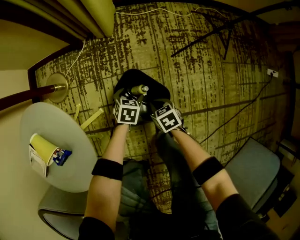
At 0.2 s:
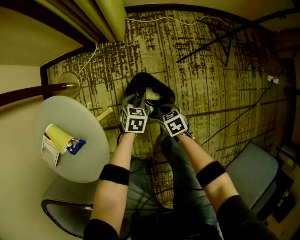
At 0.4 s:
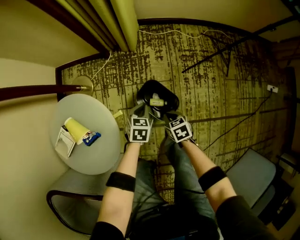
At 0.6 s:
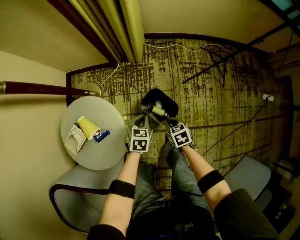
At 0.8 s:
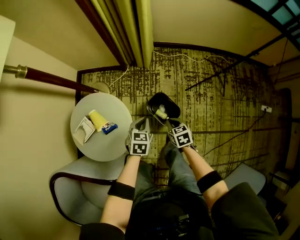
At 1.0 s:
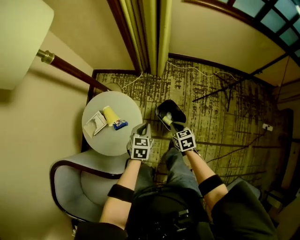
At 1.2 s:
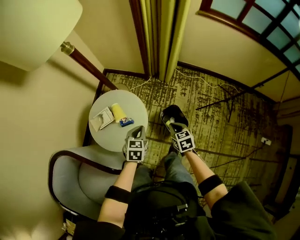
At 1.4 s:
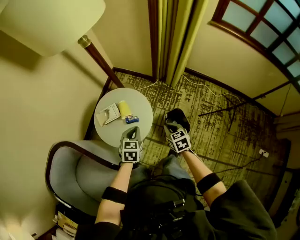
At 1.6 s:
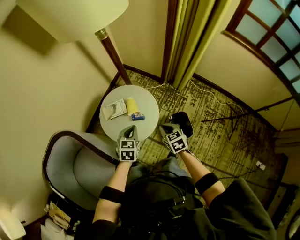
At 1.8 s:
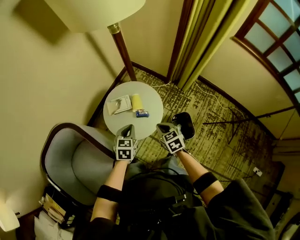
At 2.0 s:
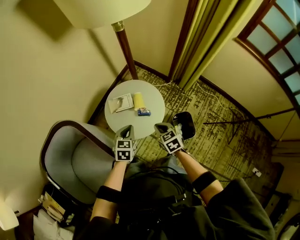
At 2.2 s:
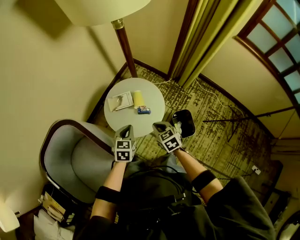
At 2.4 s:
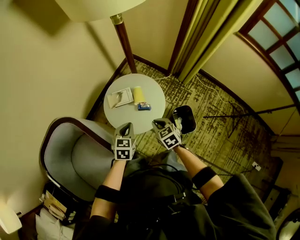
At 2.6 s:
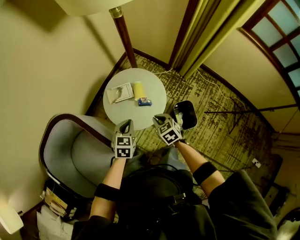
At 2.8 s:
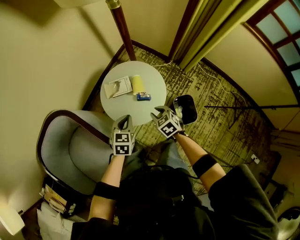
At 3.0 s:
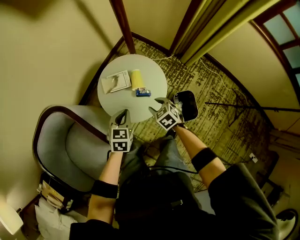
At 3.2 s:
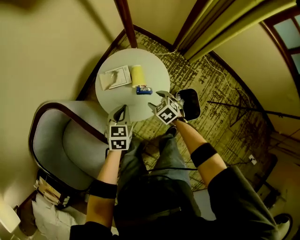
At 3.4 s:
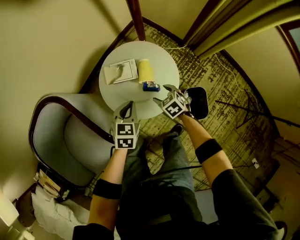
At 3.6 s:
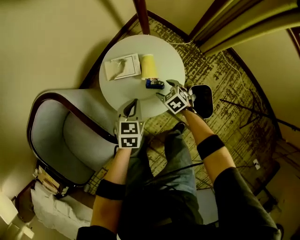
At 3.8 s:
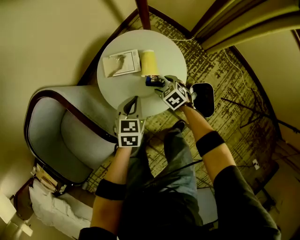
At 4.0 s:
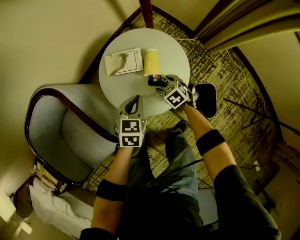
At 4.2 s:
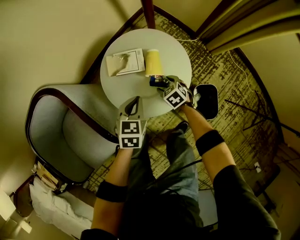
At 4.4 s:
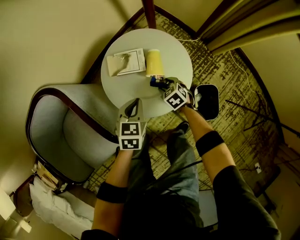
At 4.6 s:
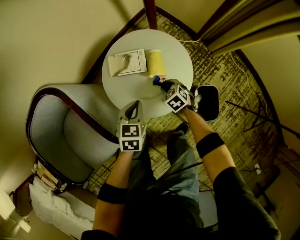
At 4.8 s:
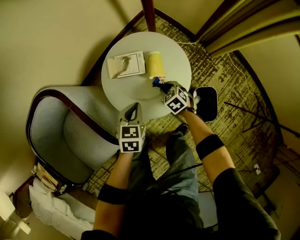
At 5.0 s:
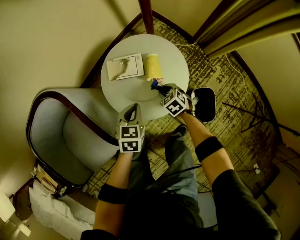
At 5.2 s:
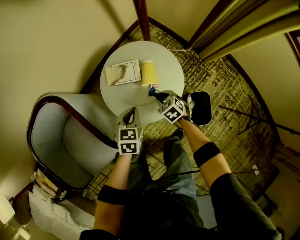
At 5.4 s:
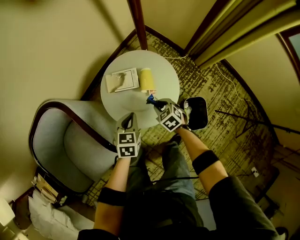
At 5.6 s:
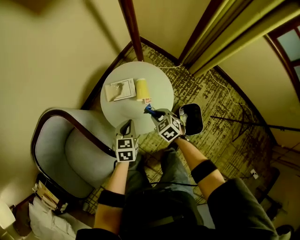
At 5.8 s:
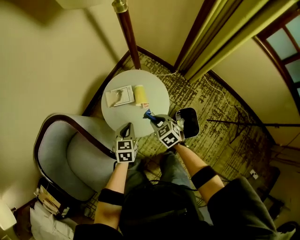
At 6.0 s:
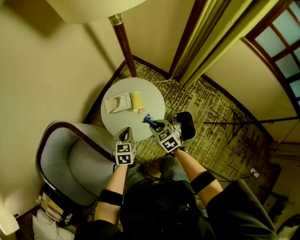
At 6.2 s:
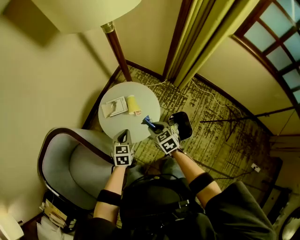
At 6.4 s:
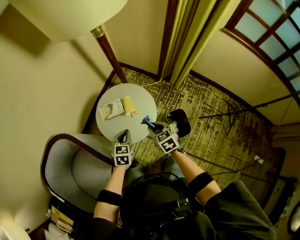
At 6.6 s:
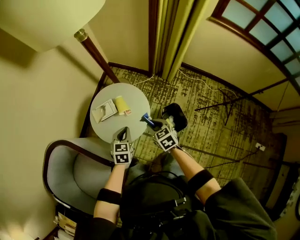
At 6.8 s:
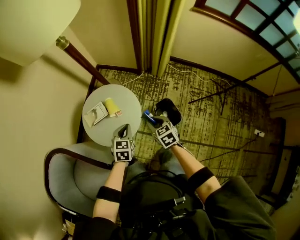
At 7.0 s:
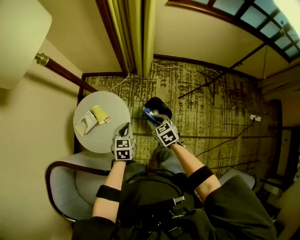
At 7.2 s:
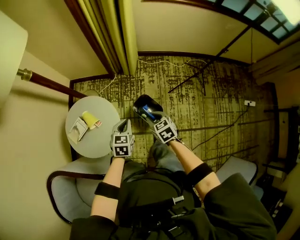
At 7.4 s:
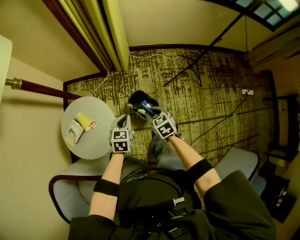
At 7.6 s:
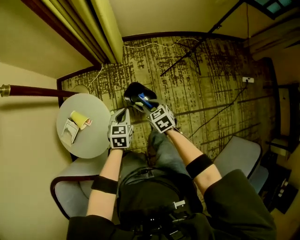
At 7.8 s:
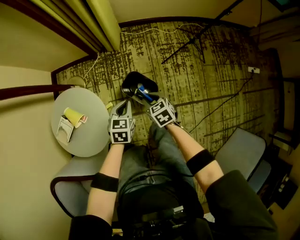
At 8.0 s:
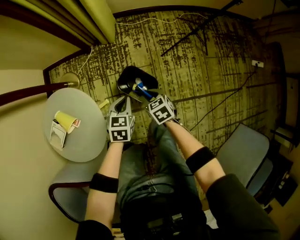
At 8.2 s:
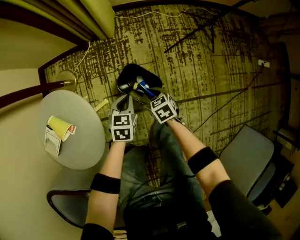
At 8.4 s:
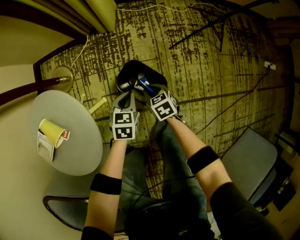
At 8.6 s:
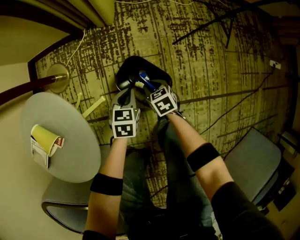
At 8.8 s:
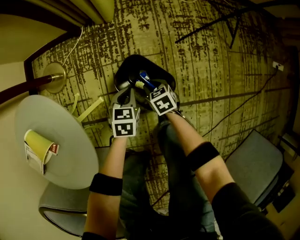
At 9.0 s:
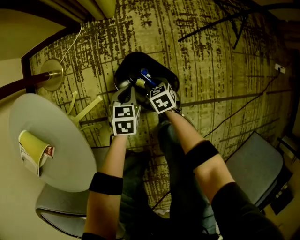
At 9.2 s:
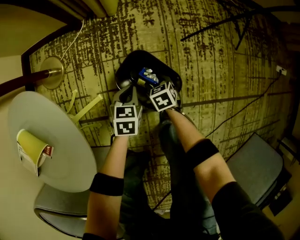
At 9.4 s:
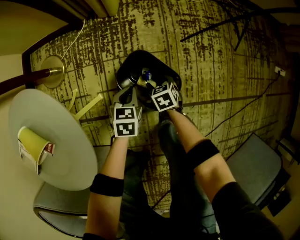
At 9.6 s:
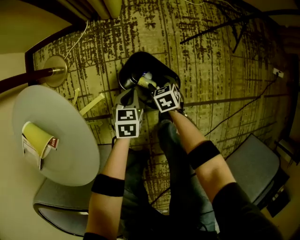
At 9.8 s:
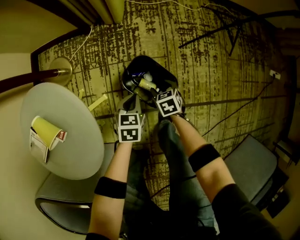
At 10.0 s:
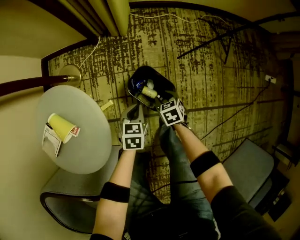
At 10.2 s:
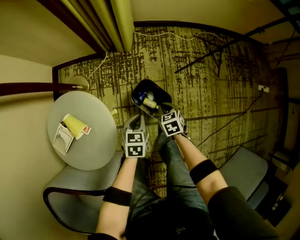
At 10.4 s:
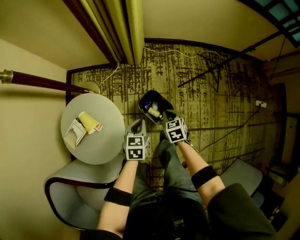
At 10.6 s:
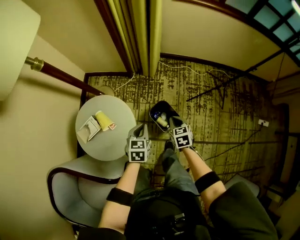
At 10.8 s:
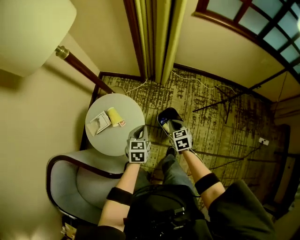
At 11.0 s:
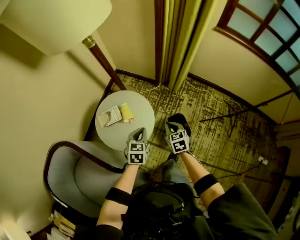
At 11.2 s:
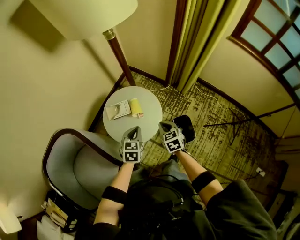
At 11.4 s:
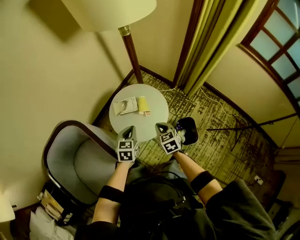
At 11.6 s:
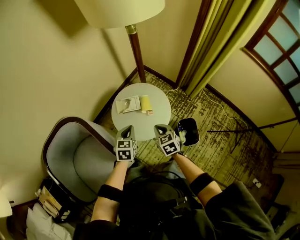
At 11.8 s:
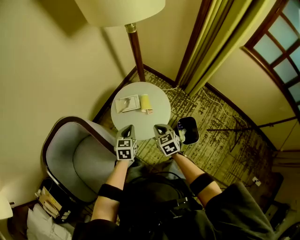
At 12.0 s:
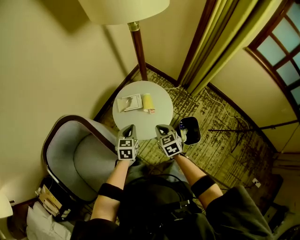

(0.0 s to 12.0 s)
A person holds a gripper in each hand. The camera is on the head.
0.0 s - 1.6 s: Both grippers move upward, approximately 50 cm. The right gripper changes its angle by some 40 degrees. The left gripper turns by about 50 degrees, and closes up.
1.6 s - 3.0 s: The right gripper travels to the left, downward and forward by roughly 15 cm, rotates approximately 20 degrees, and opens. The left gripper is displaced to the left and downward by roughly 10 cm.
3.0 s - 4.4 s: The right gripper heads downward, covering about 20 cm. Meanwhile the left gripper heads downward, covering about 10 cm.
4.4 s - 6.0 s: The left gripper heads upward, covering approximately 10 cm. The right gripper goes some 25 cm upward.
6.0 s - 7.6 s: The left gripper shifts by some 35 cm, and swivels approximately 40 degrees. The right gripper ends up approximately 35 cm from where it was, and turns by some 50 degrees.
7.6 s - 9.0 s: Both grippers move downward, approximately 50 cm.
9.0 s - 10.4 s: Both grippers travel together upward, about 40 cm.
10.4 s - 12.0 s: The left gripper ends up approximately 40 cm from where it was, and turns by some 40 degrees. Meanwhile the right gripper ends up approximately 40 cm from where it was, and swivels approximately 50 degrees.

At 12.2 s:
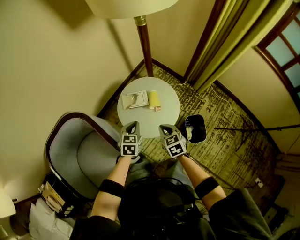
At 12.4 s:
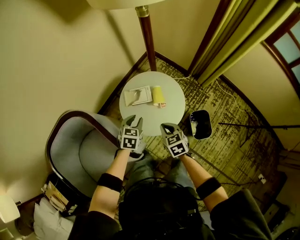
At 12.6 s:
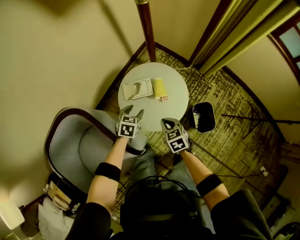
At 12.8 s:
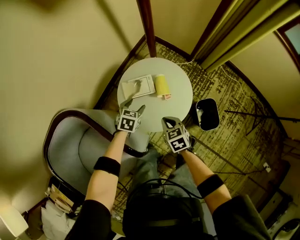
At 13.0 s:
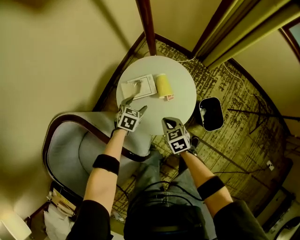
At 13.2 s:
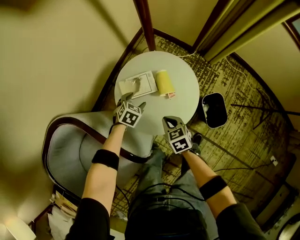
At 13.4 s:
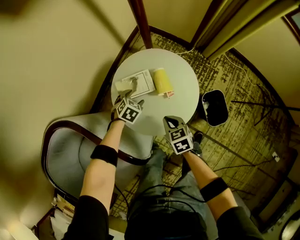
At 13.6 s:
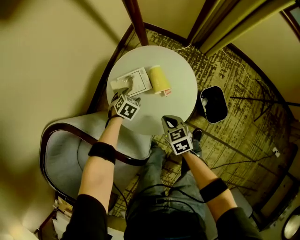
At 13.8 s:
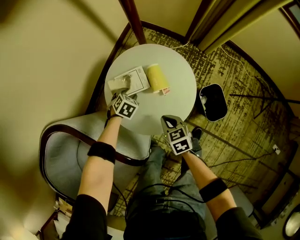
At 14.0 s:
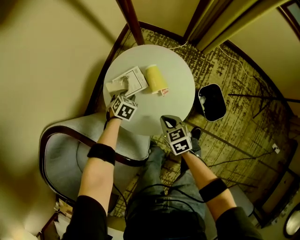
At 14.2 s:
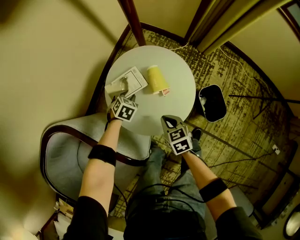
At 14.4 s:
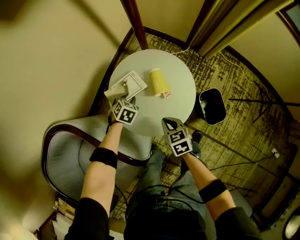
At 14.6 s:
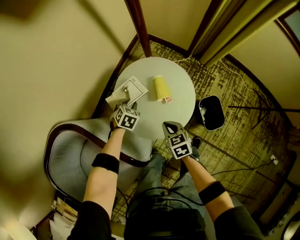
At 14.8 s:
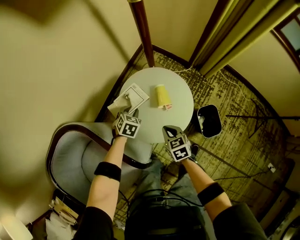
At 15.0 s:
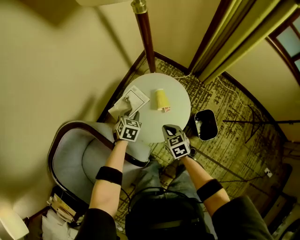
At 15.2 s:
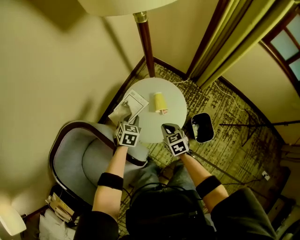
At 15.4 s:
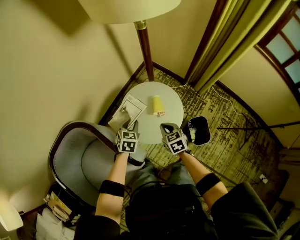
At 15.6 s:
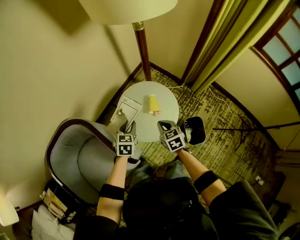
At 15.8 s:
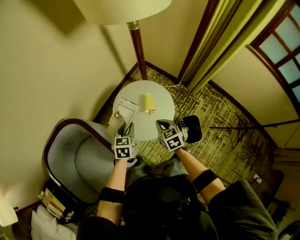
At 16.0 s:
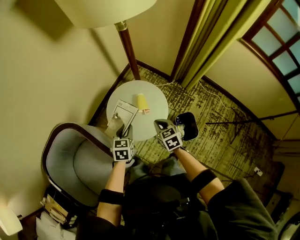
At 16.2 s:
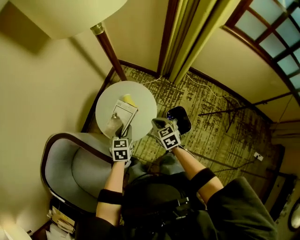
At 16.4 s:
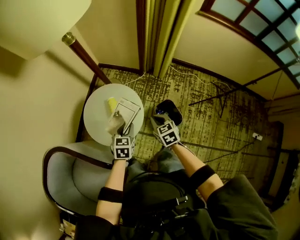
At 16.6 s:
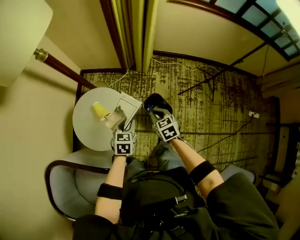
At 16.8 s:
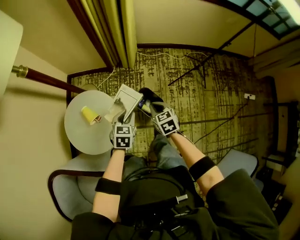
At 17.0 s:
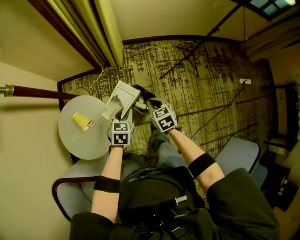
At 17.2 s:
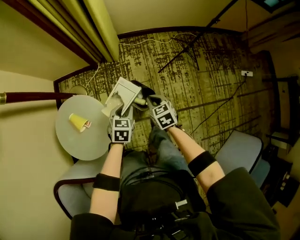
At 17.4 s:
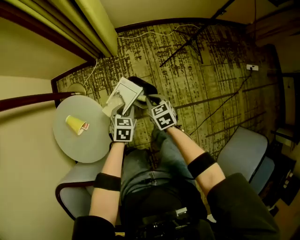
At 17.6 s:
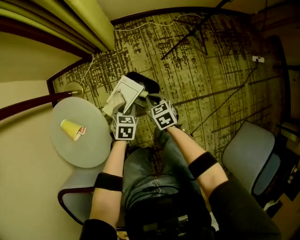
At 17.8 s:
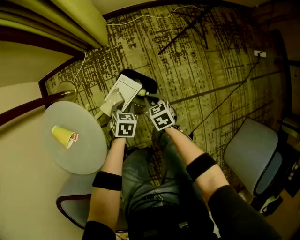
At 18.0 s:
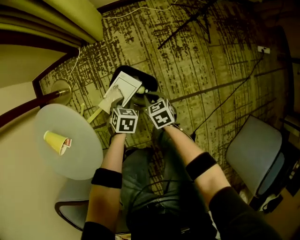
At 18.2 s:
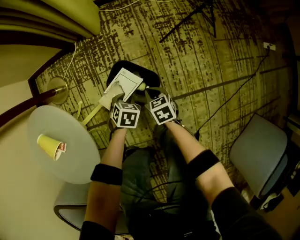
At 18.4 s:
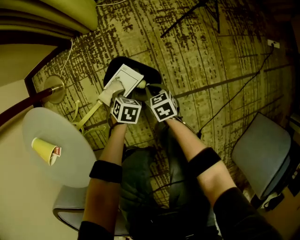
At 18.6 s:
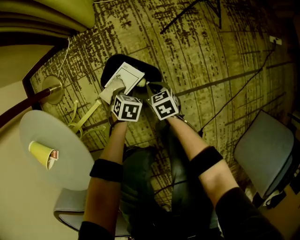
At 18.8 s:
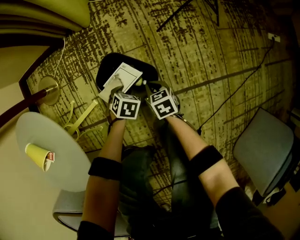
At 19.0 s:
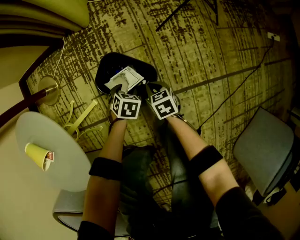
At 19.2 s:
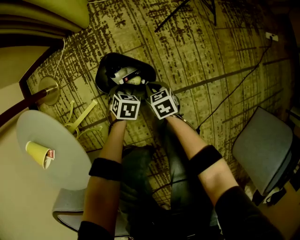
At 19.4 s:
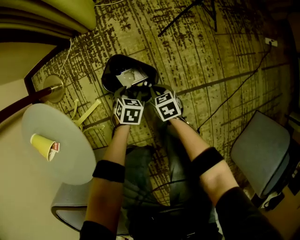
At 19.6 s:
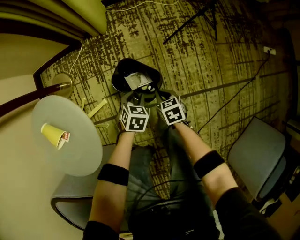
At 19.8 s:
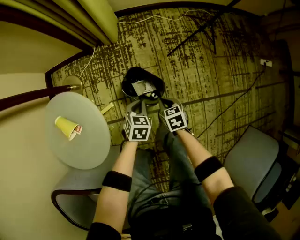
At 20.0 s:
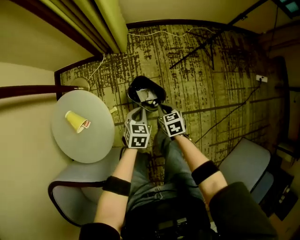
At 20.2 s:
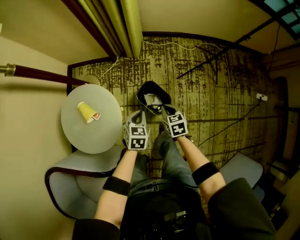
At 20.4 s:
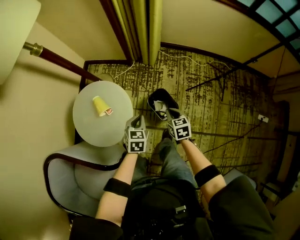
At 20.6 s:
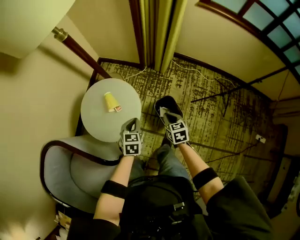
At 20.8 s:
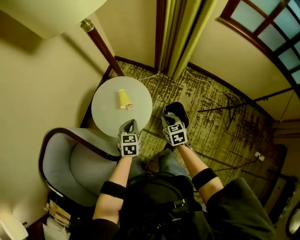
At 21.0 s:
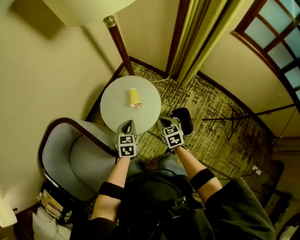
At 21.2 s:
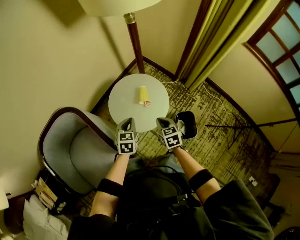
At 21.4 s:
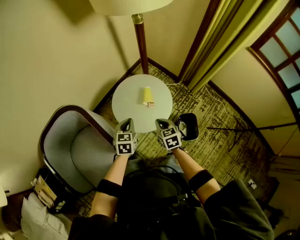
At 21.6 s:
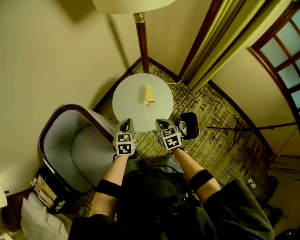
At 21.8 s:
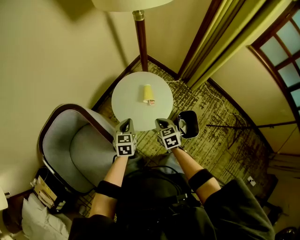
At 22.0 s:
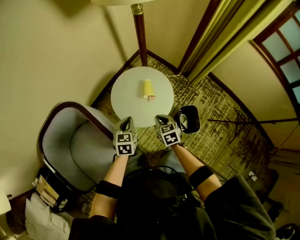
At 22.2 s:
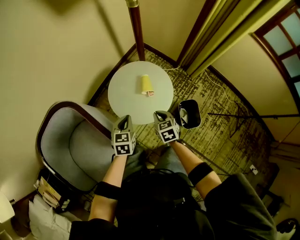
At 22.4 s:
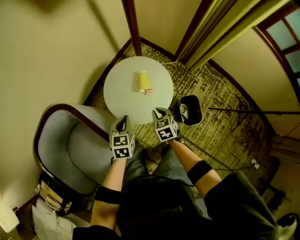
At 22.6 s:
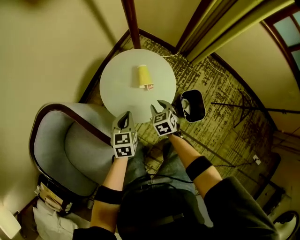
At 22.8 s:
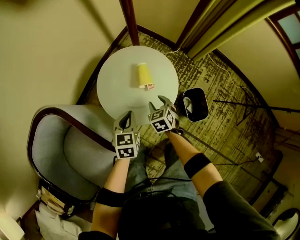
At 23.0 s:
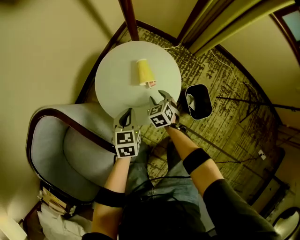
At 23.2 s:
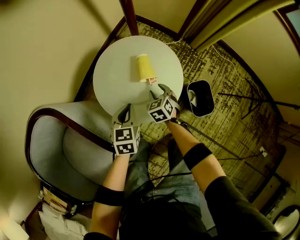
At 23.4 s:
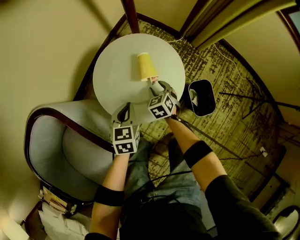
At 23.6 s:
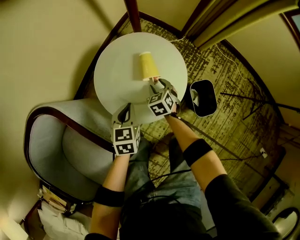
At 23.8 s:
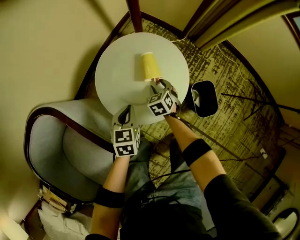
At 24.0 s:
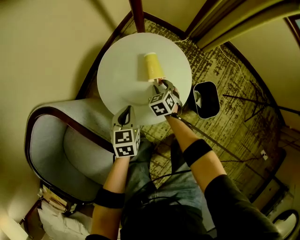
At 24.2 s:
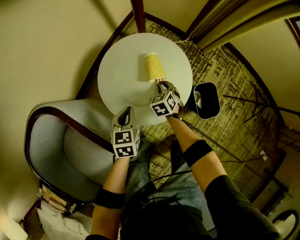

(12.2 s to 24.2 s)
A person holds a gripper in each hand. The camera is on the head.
12.2 s - 13.8 s: The right gripper shifts roughly 25 cm downward; the left gripper moves downward and forward, approximately 35 cm, swivels some 40 degrees, and opens up.
13.8 s - 15.2 s: The left gripper travels upward by some 25 cm, and changes its angle by about 30 degrees; the right gripper is displaced upward by roughly 20 cm.
15.2 s - 16.6 s: The left gripper ends up about 35 cm from where it was, and turns by roughly 20 degrees; the right gripper changes place by some 30 cm, and changes its angle by roughly 30 degrees.
16.6 s - 18.2 s: The right gripper moves downward, roughly 40 cm, and rotates approximately 30 degrees. The left gripper moves downward and to the right, approximately 50 cm, and swivels about 40 degrees.
18.2 s - 19.8 s: Both grippers travel together upward, approximately 15 cm. The left gripper opens and closes again.
19.8 s - 21.2 s: The right gripper ends up approximately 50 cm from where it was, and rotates around the line of its fingers by approximately 40 degrees, counterclockwise from behind, while the left gripper shifts by roughly 50 cm, and swivels roughly 60 degrees.
21.2 s - 22.6 s: The left gripper travels downward by roughly 10 cm, while the right gripper travels downward and forward by approximately 15 cm.
22.6 s - 24.2 s: The left gripper is displaced downward by some 10 cm. The right gripper moves downward and forward, some 15 cm.
